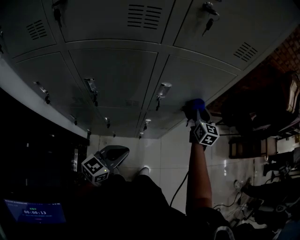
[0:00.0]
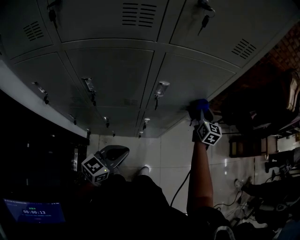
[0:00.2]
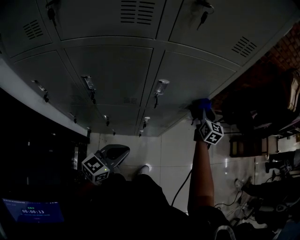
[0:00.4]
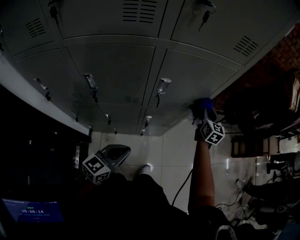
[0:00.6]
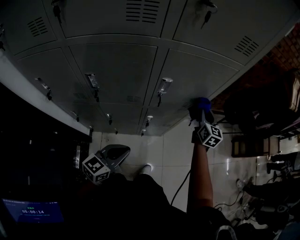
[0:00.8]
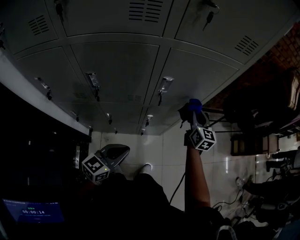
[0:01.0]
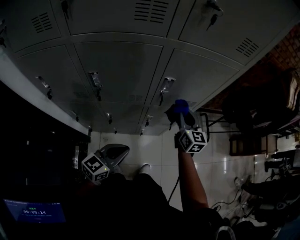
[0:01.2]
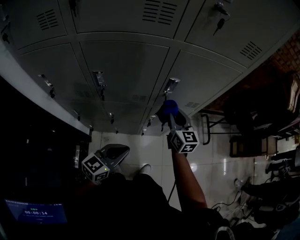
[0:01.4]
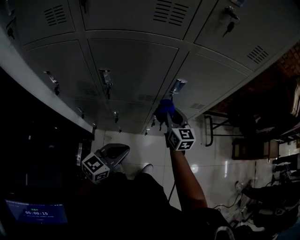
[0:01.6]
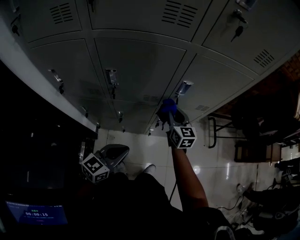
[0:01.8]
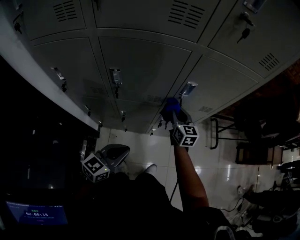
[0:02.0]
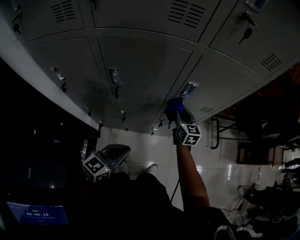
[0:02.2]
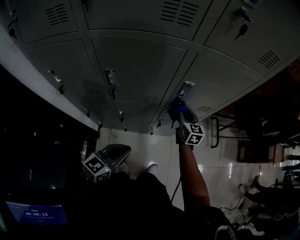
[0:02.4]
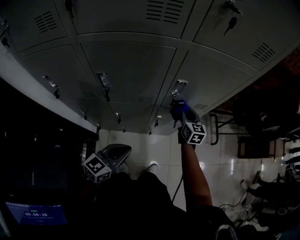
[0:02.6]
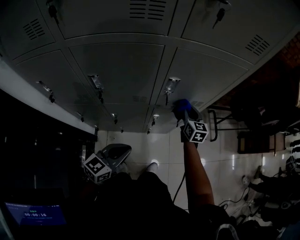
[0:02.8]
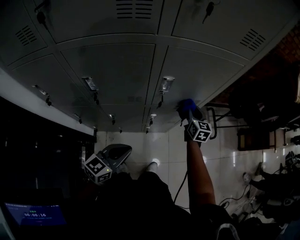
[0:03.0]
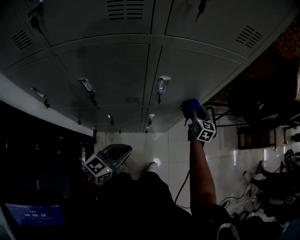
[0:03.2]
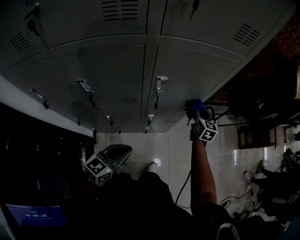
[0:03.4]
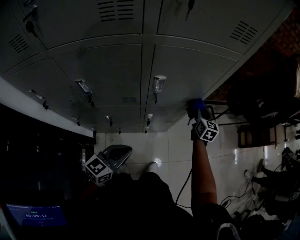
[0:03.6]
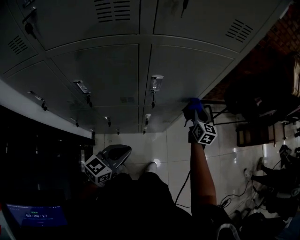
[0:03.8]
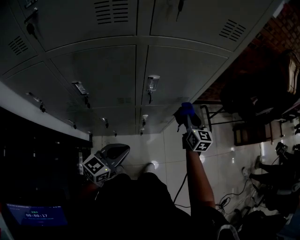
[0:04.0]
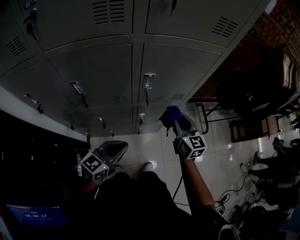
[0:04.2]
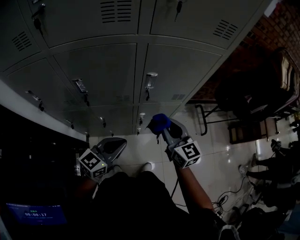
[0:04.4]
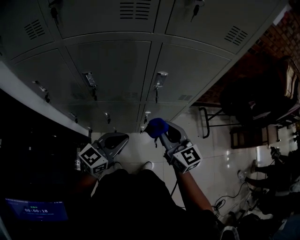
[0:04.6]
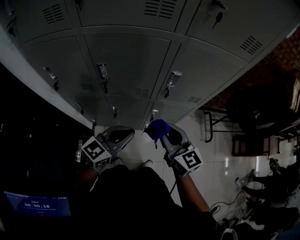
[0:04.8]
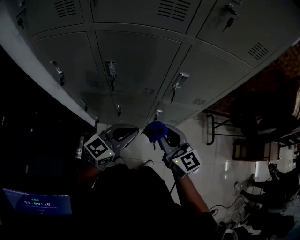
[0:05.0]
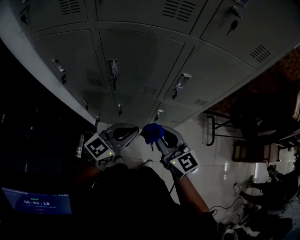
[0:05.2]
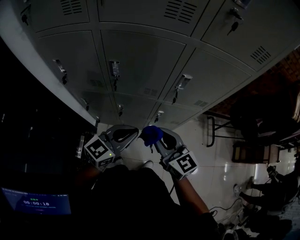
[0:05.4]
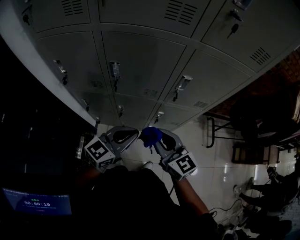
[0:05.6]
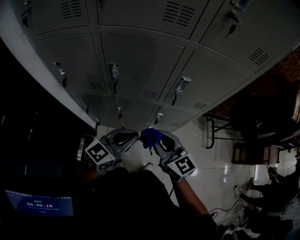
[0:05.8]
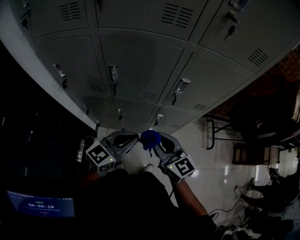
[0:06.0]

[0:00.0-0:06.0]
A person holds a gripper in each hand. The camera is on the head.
0:00.0 to 0:01.6: The right gripper shifts approximately 20 cm to the left and backward; the left gripper ends up approximately 5 cm from where it was.
0:01.6 to 0:03.0: The right gripper moves to the right, forward and downward, approximately 20 cm.
0:03.0 to 0:04.4: The right gripper is displaced backward and upward by about 20 cm, and swivels approximately 20 degrees.
0:04.4 to 0:06.0: The left gripper ends up roughly 5 cm from where it was. Meanwhile the right gripper goes approximately 15 cm to the left and backward.

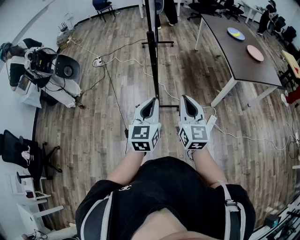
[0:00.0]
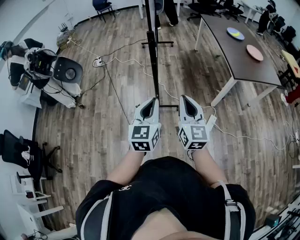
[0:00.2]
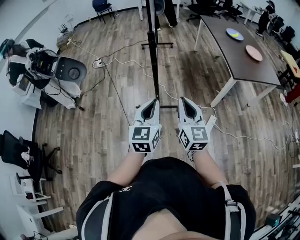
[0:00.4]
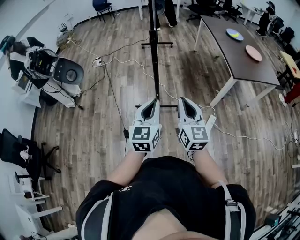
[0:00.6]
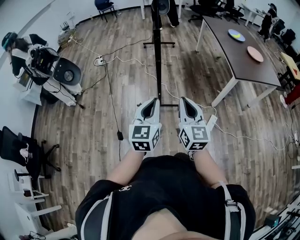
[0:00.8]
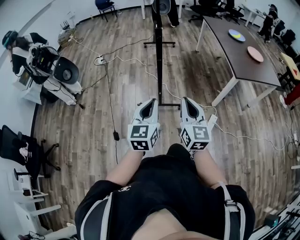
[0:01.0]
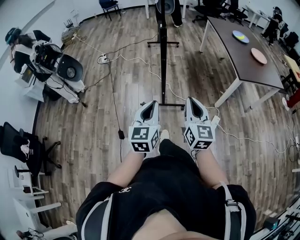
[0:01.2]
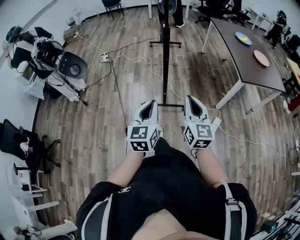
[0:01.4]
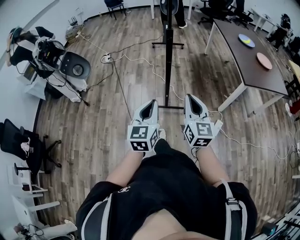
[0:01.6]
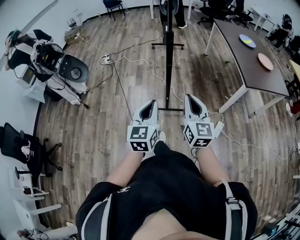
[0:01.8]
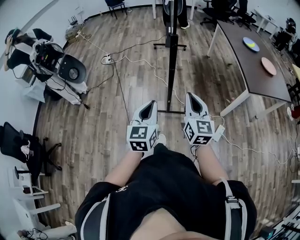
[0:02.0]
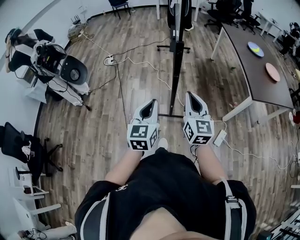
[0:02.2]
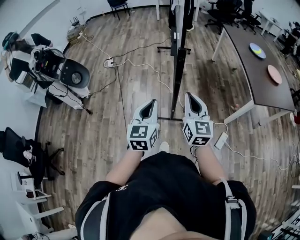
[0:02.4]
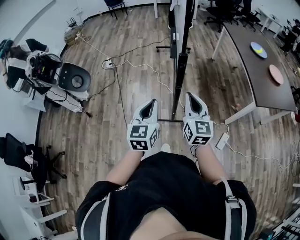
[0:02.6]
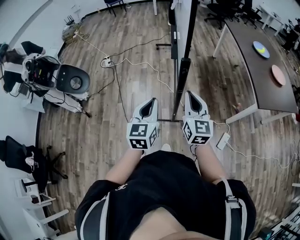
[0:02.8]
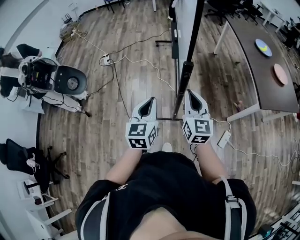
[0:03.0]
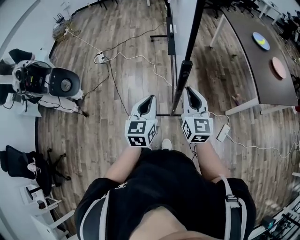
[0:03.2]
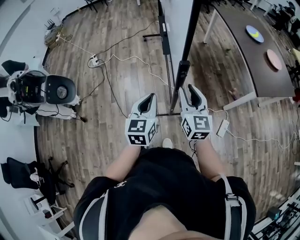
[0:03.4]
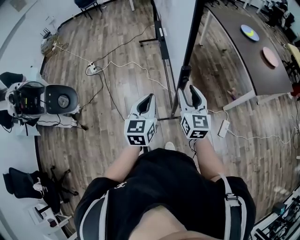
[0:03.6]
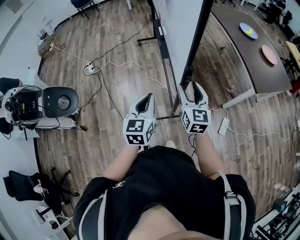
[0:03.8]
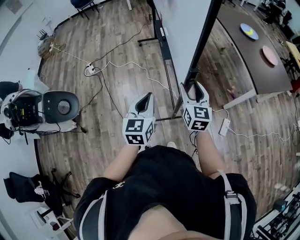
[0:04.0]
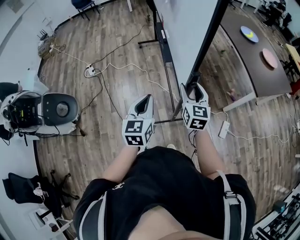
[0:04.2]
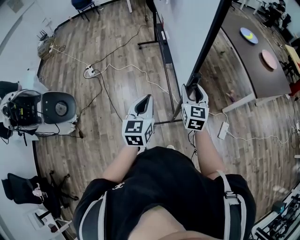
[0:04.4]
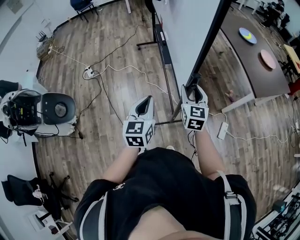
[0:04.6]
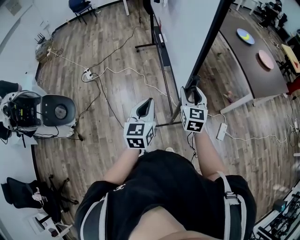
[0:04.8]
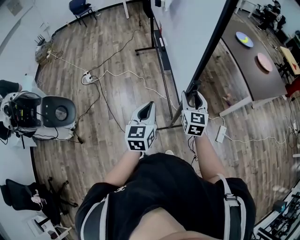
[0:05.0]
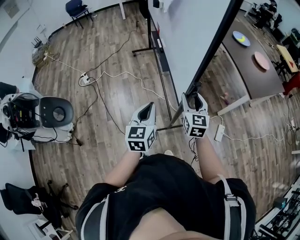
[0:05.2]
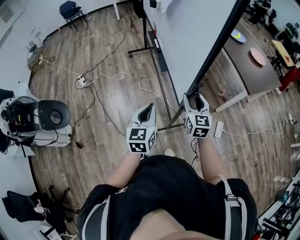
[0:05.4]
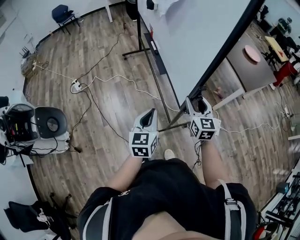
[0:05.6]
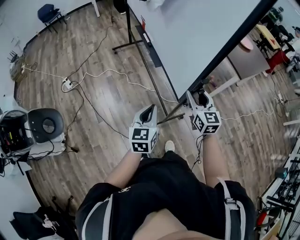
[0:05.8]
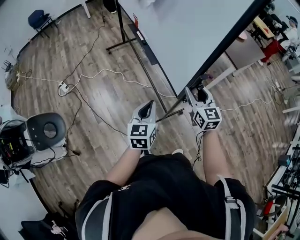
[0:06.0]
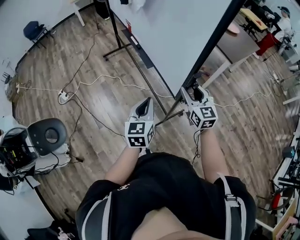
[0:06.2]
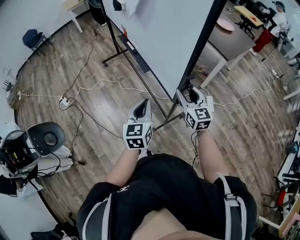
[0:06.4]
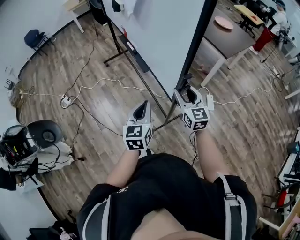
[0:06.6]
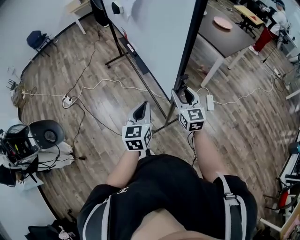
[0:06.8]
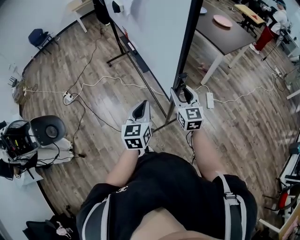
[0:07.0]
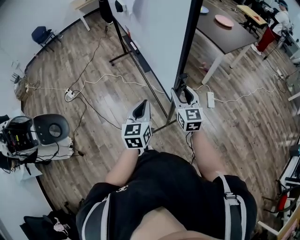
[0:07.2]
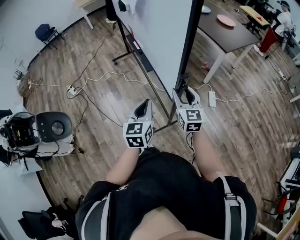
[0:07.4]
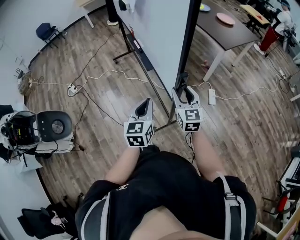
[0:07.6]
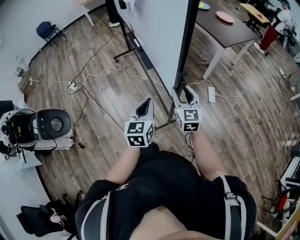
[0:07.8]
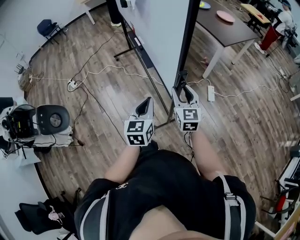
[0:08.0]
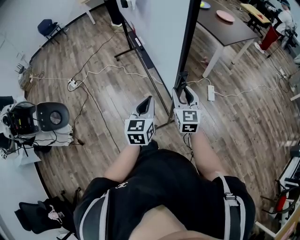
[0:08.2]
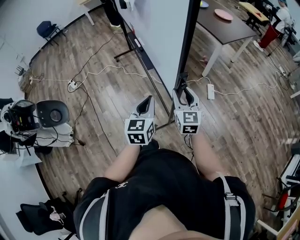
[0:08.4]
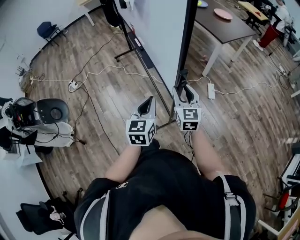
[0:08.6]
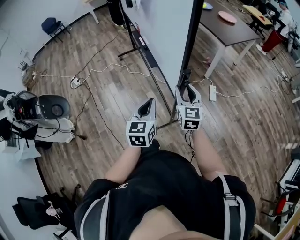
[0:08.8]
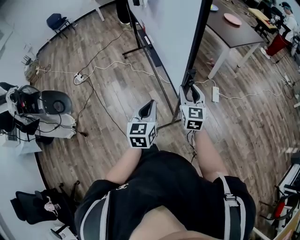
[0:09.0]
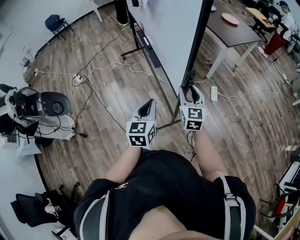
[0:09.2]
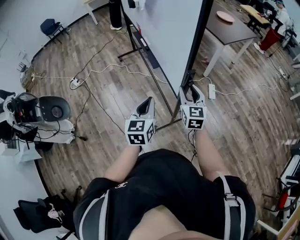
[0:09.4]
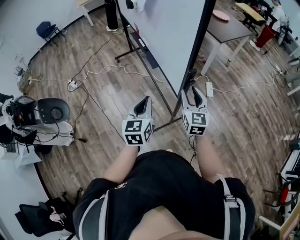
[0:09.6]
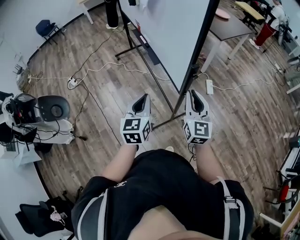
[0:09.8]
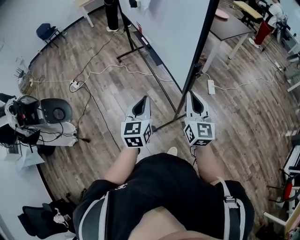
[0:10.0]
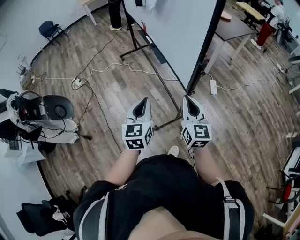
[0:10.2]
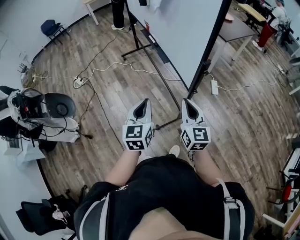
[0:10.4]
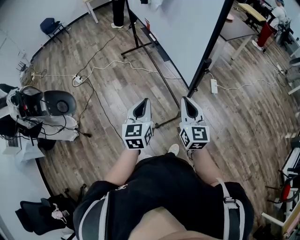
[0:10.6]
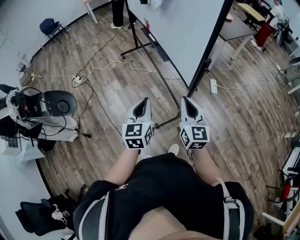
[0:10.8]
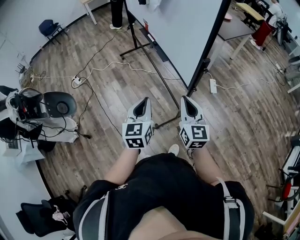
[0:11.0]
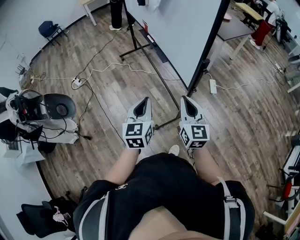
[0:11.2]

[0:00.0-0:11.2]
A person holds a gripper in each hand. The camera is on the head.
0:00.0 to 0:01.6: Both grippers move to the left, about 5 cm.
0:01.6 to 0:03.2: The two grippers go about 30 cm forward.
0:03.2 to 0:04.8: The grippers both shift forward by approximately 5 cm. The right gripper rotates roughly 20 degrees, and opens its fingers.
0:04.8 to 0:06.4: The left gripper goes roughly 5 cm backward. Meanwhile the right gripper shifts some 10 cm backward.
0:06.4 to 0:08.0: The left gripper travels backward and to the right by roughly 20 cm. The right gripper goes approximately 15 cm backward.
0:08.0 to 0:09.6: Both grippers move backward, roughly 10 cm.
0:09.6 to 0:11.2: The left gripper shifts about 10 cm to the left and backward. Meanwhile the right gripper is displaced backward and to the left by roughly 15 cm, and closes up.

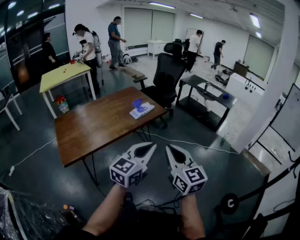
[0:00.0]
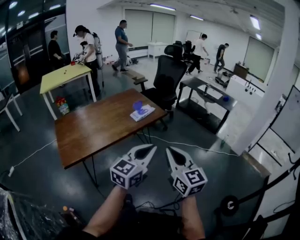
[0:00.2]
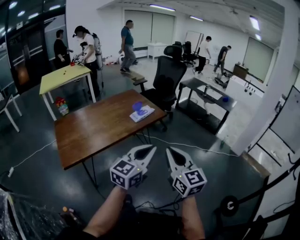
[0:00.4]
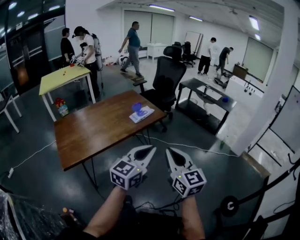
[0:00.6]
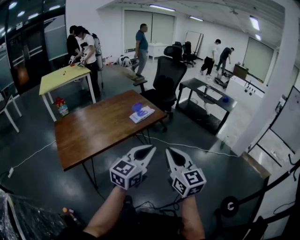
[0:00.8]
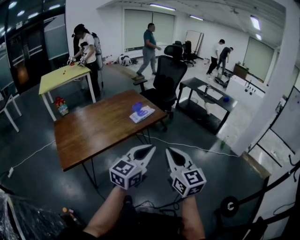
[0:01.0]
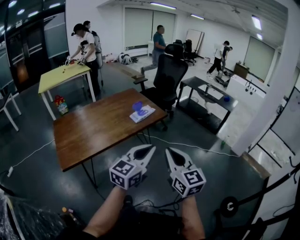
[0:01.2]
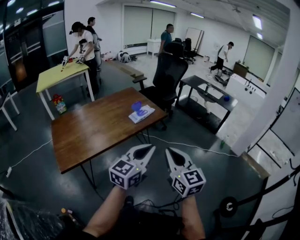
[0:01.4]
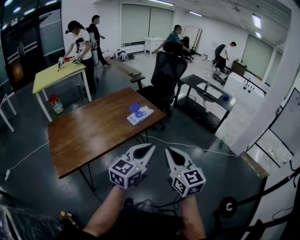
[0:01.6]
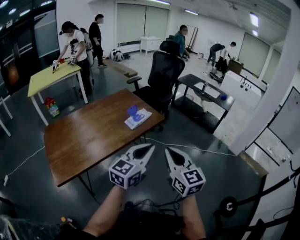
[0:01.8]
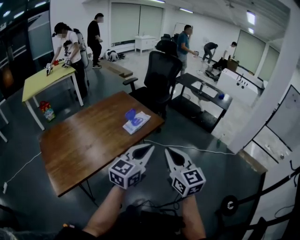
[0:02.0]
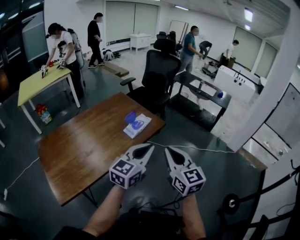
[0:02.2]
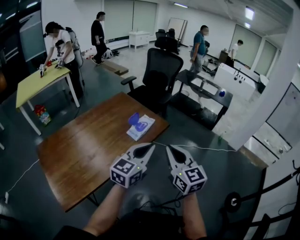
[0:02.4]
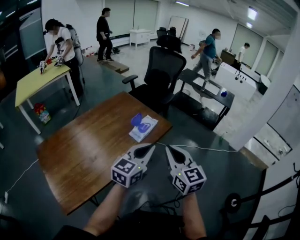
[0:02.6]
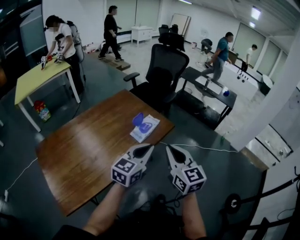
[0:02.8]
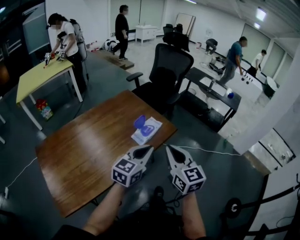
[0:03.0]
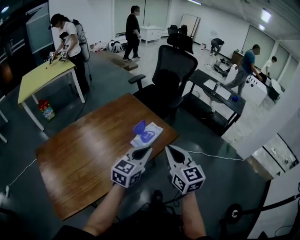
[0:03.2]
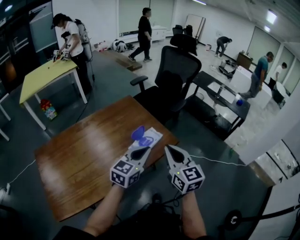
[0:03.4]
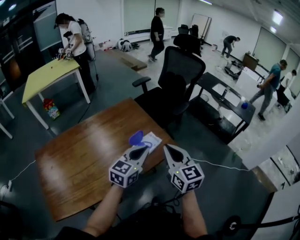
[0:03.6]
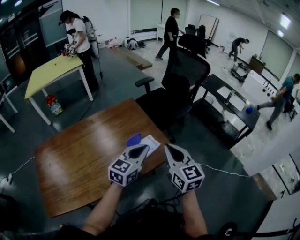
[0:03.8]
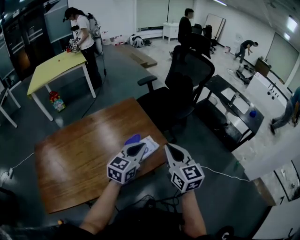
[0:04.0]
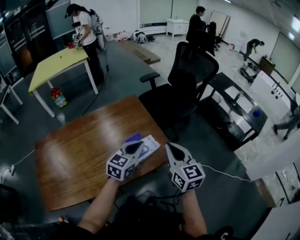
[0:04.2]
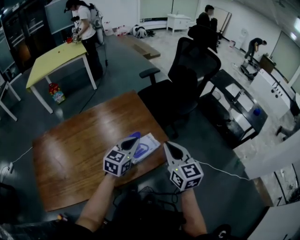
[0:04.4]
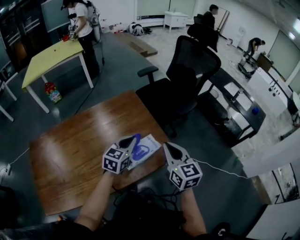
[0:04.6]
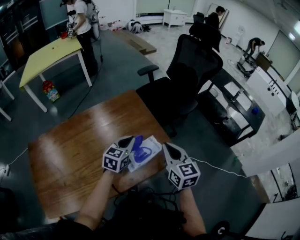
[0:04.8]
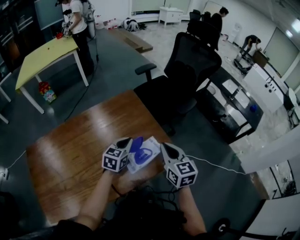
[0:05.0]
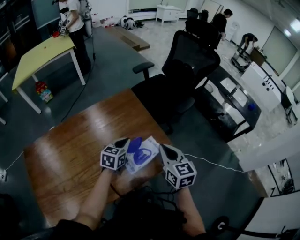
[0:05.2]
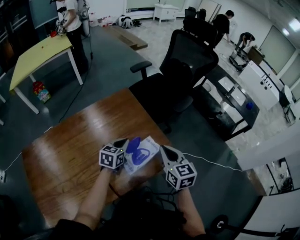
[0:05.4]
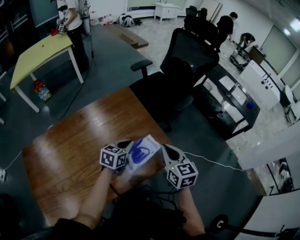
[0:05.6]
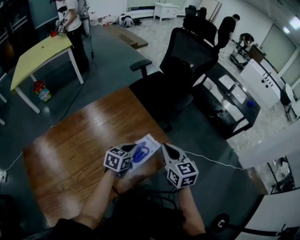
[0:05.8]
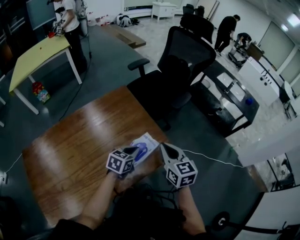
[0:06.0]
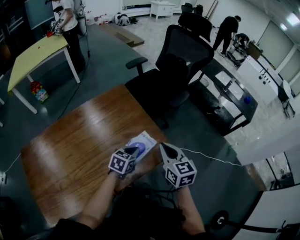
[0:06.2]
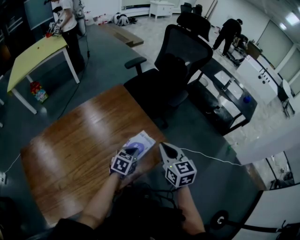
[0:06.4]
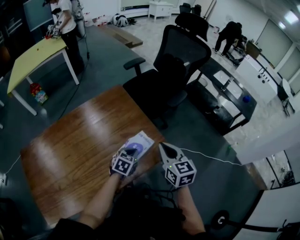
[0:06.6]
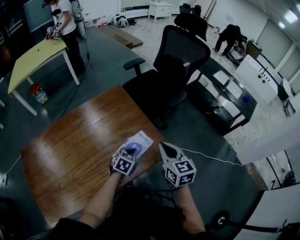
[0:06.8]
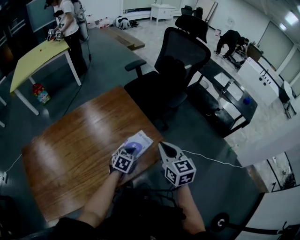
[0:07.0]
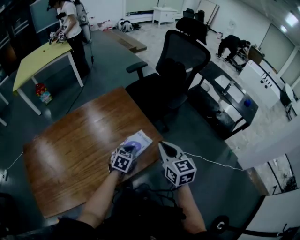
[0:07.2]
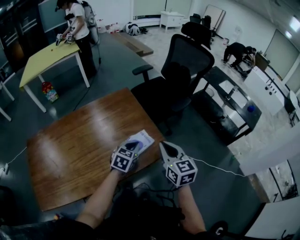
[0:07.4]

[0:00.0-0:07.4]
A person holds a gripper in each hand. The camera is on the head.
0:00.0 to 0:01.4: The grippers both shift forward by about 5 cm.
0:01.4 to 0:03.0: Both grippers move forward and to the left, approximately 30 cm.
0:03.0 to 0:04.4: The two grippers go some 25 cm forward. The left gripper changes its angle by some 20 degrees.
0:04.4 to 0:06.0: The right gripper is displaced downward by roughly 5 cm. The left gripper moves downward, approximately 15 cm, and rotates about 20 degrees.
0:06.0 to 0:07.4: The grippers stay close to where they were, moving slightly.
